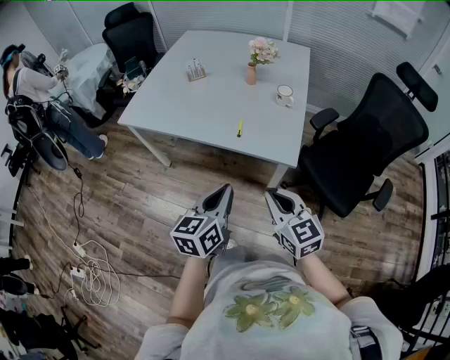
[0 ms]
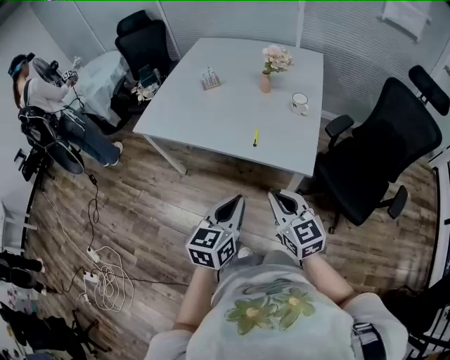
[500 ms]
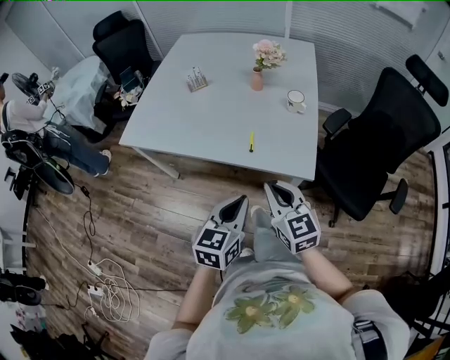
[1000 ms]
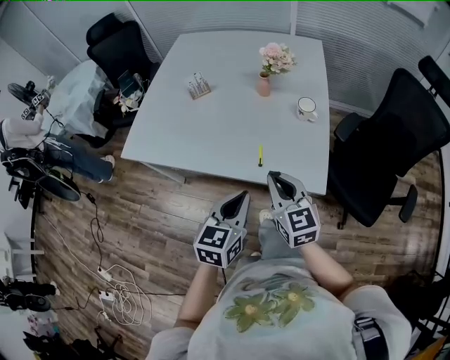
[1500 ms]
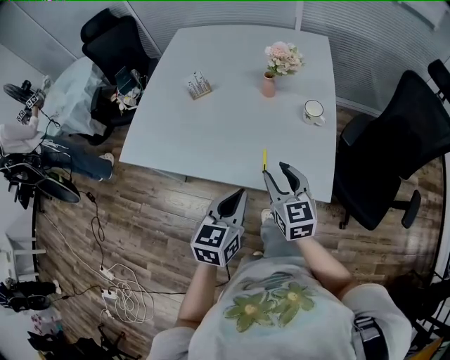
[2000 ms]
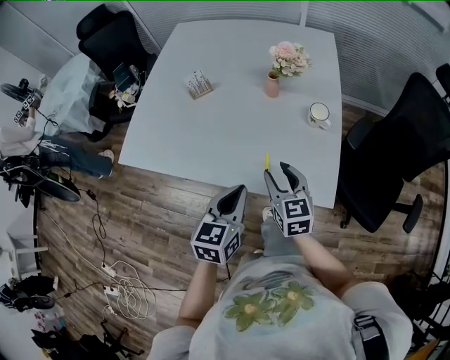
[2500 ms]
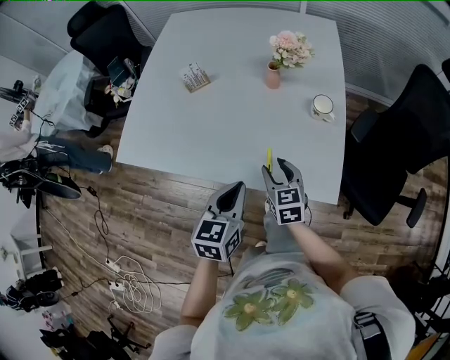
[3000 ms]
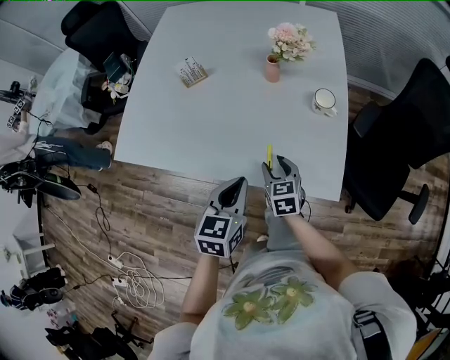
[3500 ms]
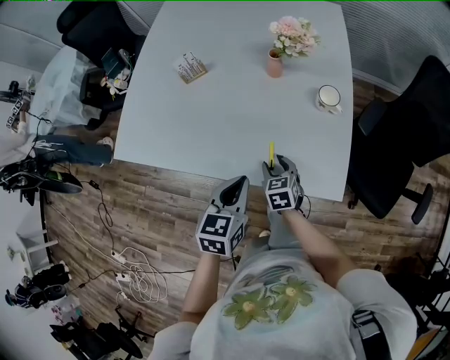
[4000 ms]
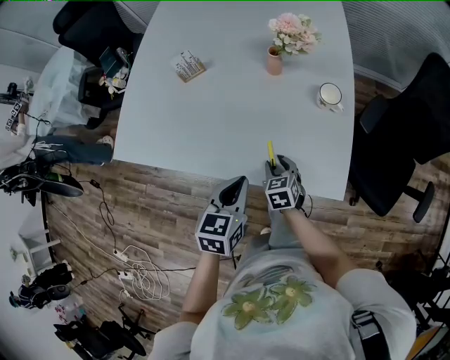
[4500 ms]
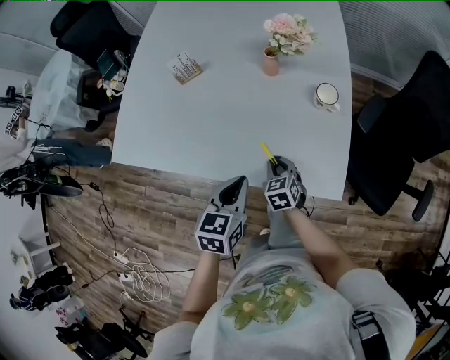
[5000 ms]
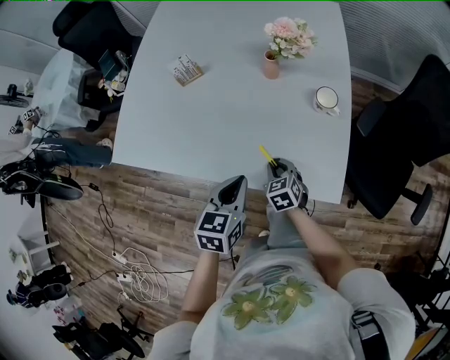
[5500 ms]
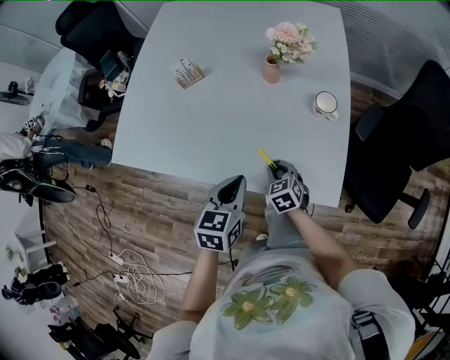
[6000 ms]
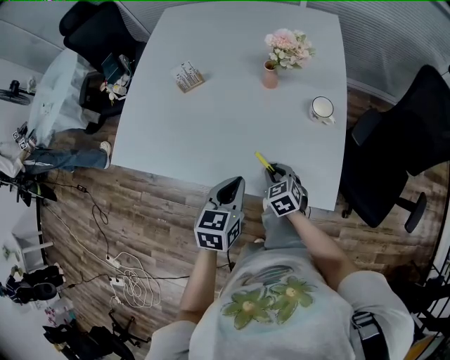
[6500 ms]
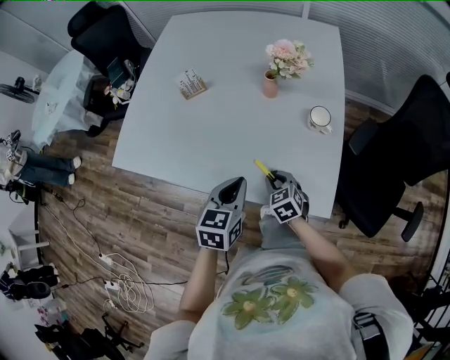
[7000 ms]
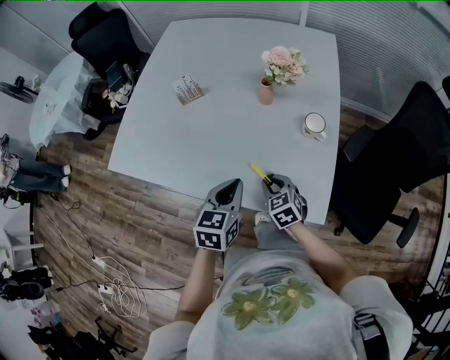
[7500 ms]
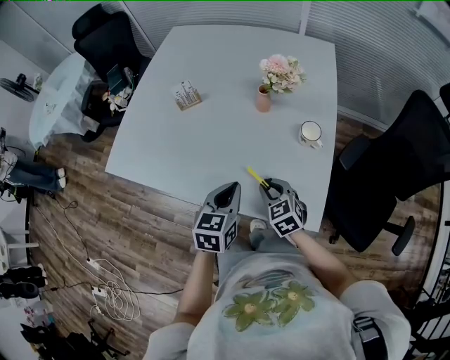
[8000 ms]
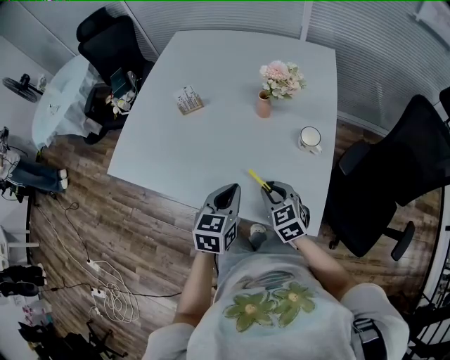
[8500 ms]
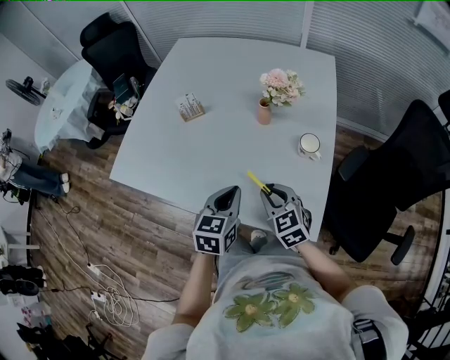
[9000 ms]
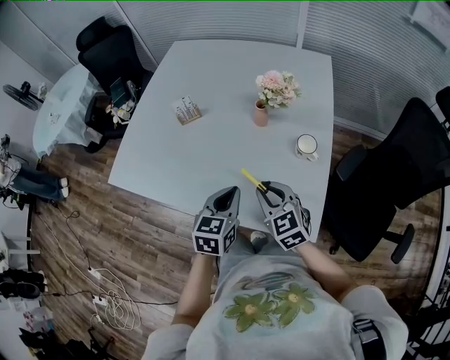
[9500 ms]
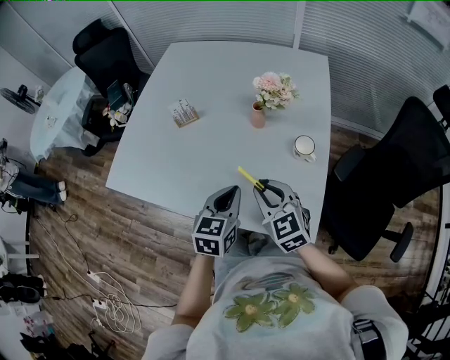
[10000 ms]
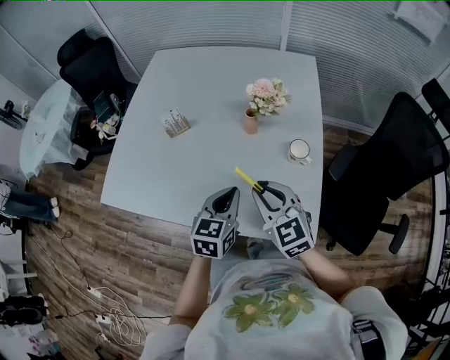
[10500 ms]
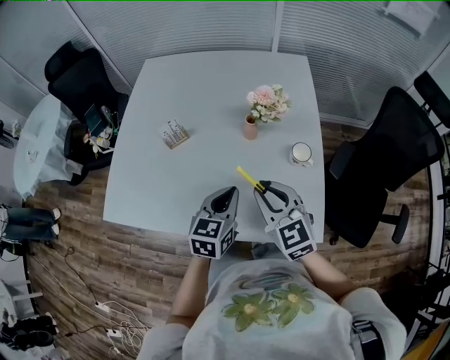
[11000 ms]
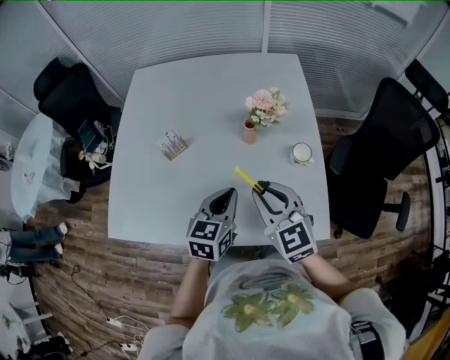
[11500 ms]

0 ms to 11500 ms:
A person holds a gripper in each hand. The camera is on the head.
0 ms to 2000 ms: The two grippers go some 25 cm forward. The right gripper opens.
2000 ms to 4000 ms: The left gripper heads forward and downward, covering about 10 cm; the right gripper moves downward, roughly 20 cm, and rotates some 30 degrees.
4000 ms to 6000 ms: The right gripper closes its fingers.
6000 ms to 7500 ms: The right gripper heads upward, covering about 5 cm.
7500 ms to 9500 ms: The right gripper goes some 15 cm upward.
9500 ms to 11500 ms: The right gripper travels upward, forward and to the left by approximately 15 cm, while the left gripper shifts some 10 cm forward.

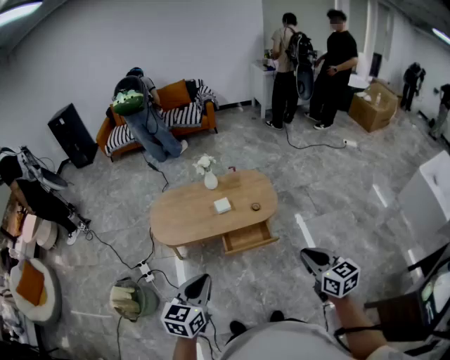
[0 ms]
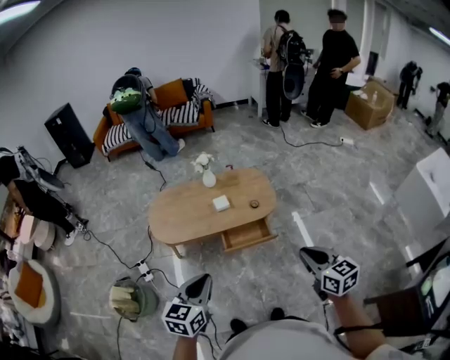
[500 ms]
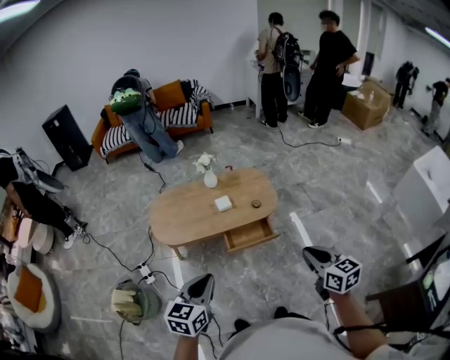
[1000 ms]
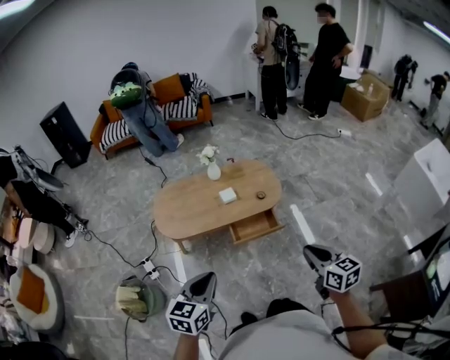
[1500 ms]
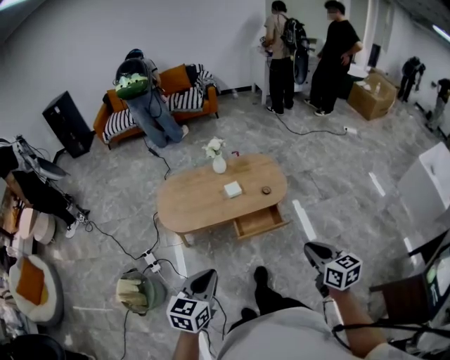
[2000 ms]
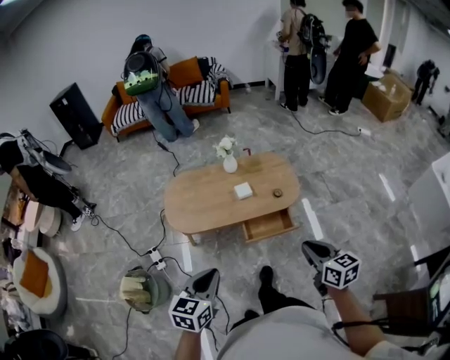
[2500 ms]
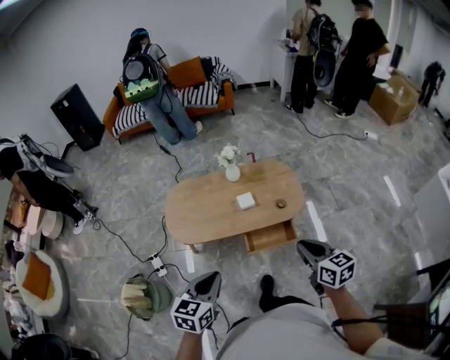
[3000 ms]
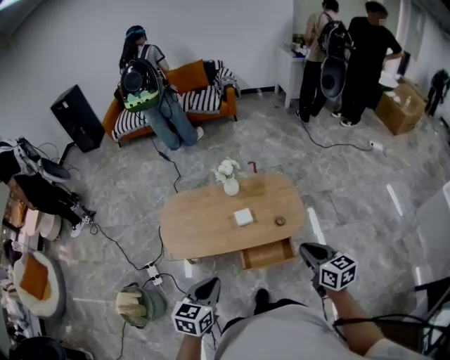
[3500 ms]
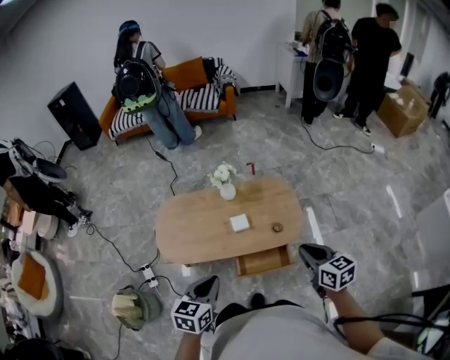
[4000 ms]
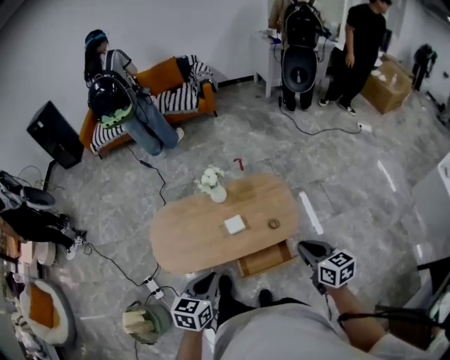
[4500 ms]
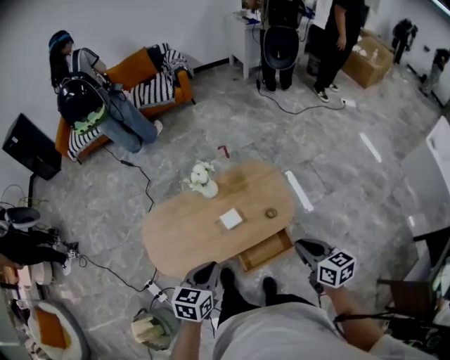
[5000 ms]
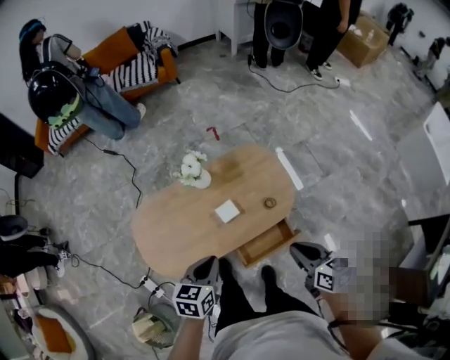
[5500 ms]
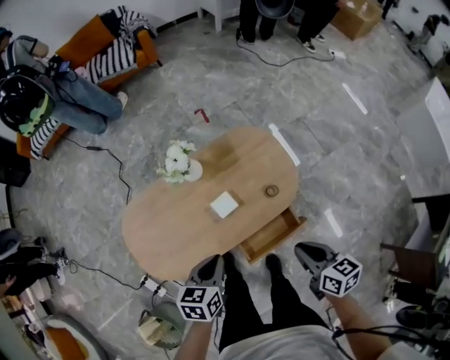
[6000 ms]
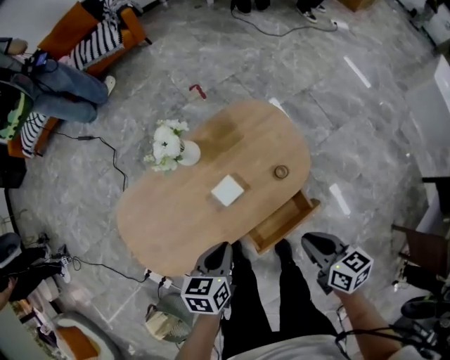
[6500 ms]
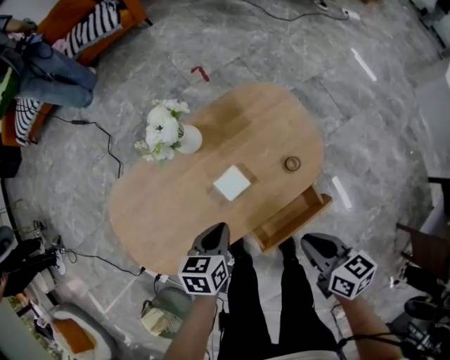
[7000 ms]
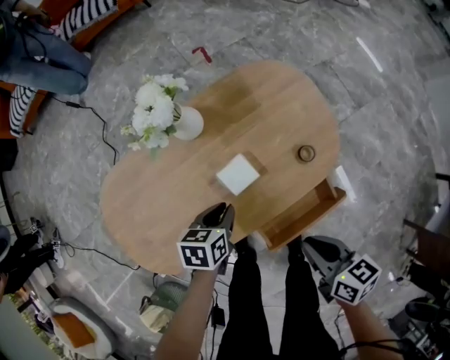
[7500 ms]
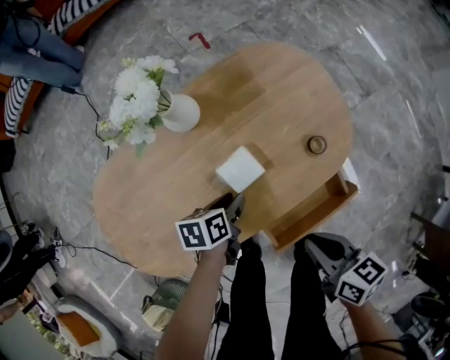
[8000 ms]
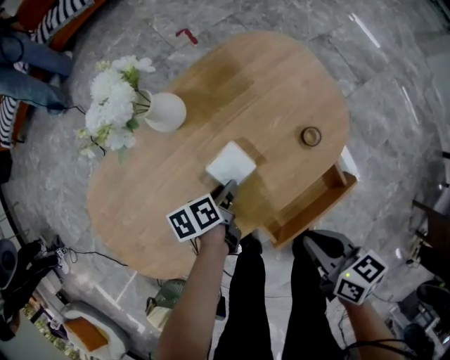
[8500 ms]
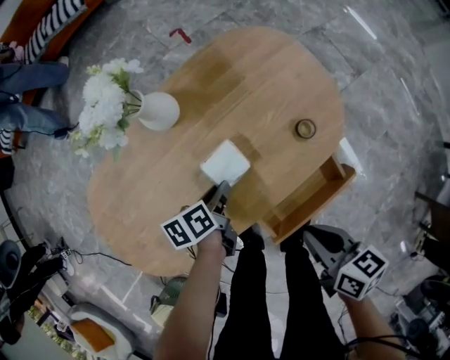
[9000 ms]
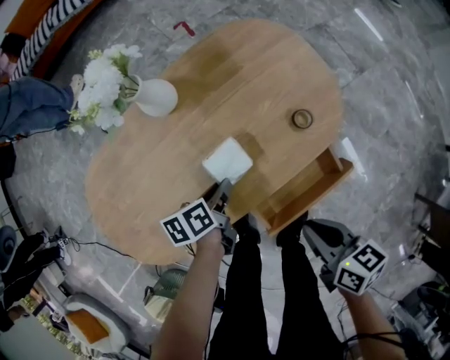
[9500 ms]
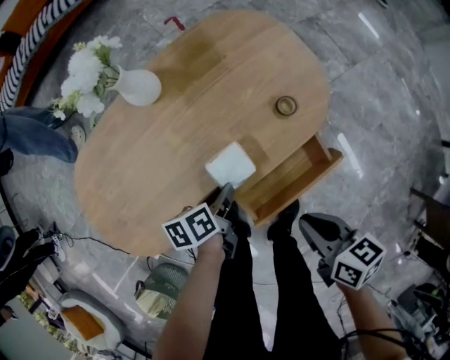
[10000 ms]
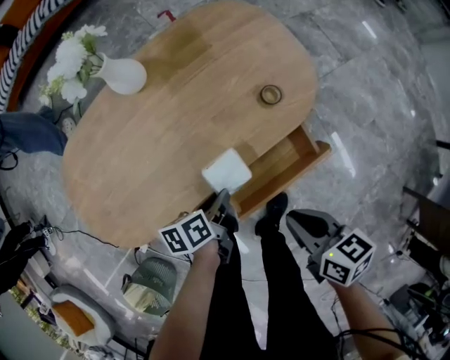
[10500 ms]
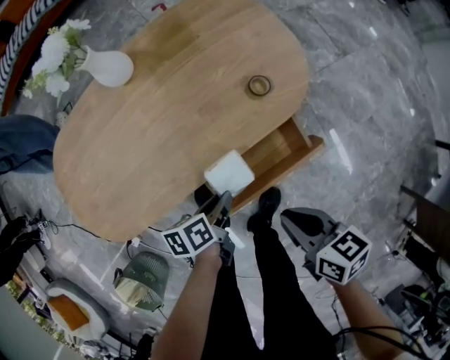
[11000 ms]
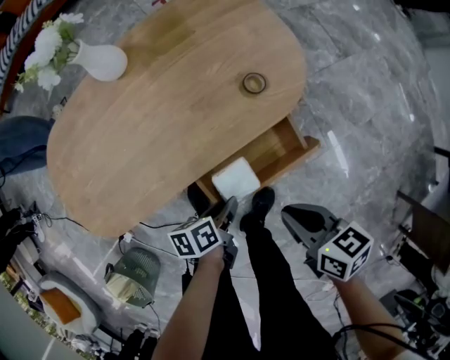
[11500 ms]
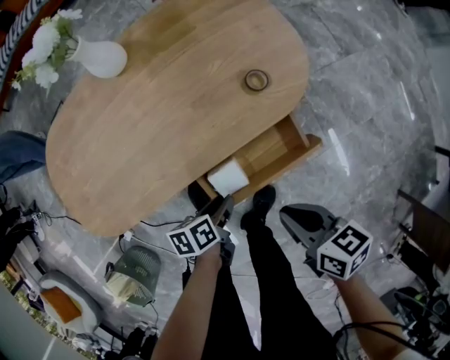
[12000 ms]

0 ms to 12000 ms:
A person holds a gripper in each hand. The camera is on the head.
0 ms to 2000 ms: The two grippers go approximately 10 cm to the left.
2000 ms to 4000 ms: Both grippers move forward, some 30 cm.
4000 ms to 6000 ms: The left gripper heads forward and downward, covering some 25 cm, and rotates some 20 degrees. The right gripper goes about 15 cm downward and to the left, and changes its angle by about 30 degrees.
6000 ms to 8000 ms: The left gripper heads downward, covering about 35 cm, swivels approximately 30 degrees, and opens, while the right gripper moves downward, roughly 20 cm.
8000 ms to 10000 ms: The left gripper moves backward and to the right, about 10 cm; the right gripper is displaced to the right and backward by about 10 cm.
10000 ms to 12000 ms: The right gripper shifts by about 5 cm; the left gripper moves backward, to the right and downward, roughly 15 cm.

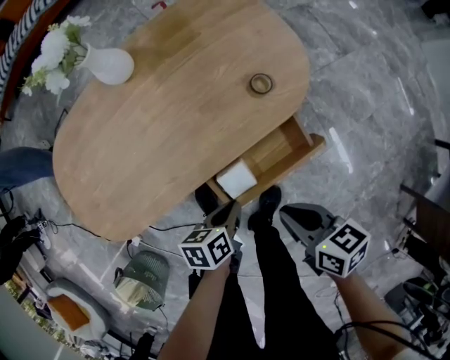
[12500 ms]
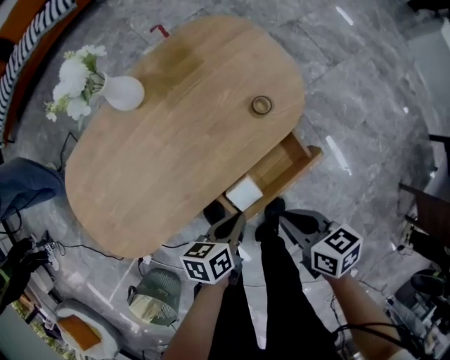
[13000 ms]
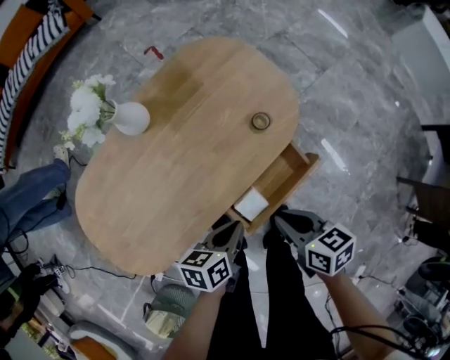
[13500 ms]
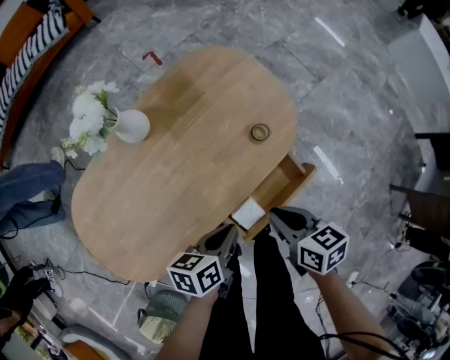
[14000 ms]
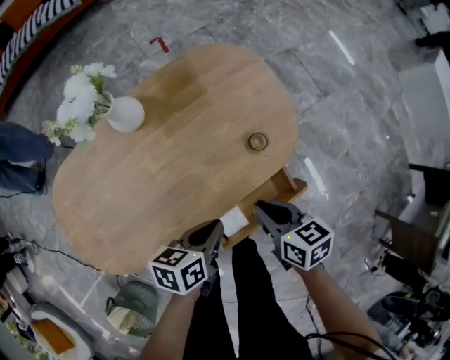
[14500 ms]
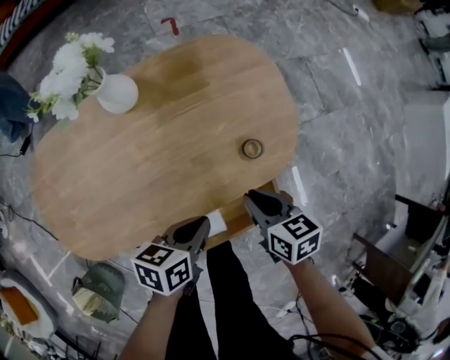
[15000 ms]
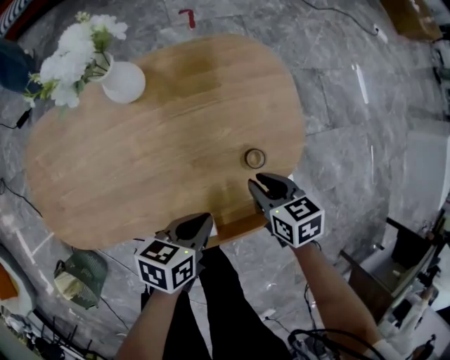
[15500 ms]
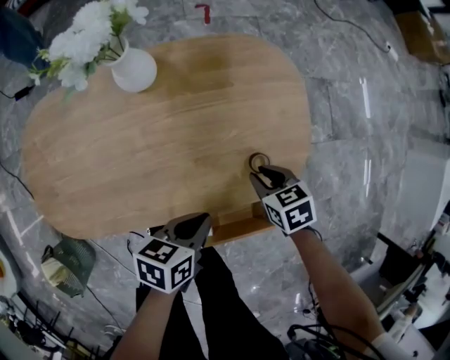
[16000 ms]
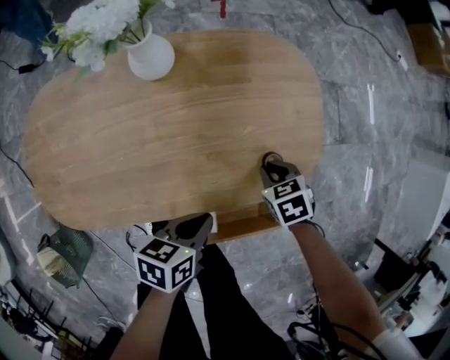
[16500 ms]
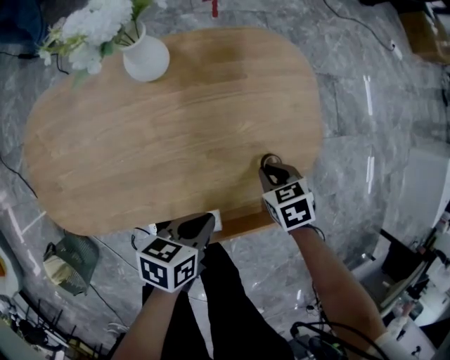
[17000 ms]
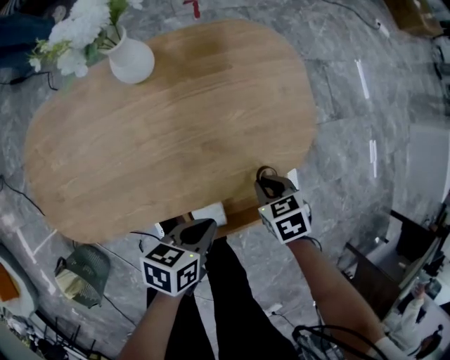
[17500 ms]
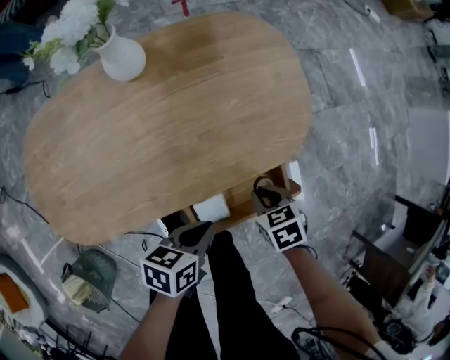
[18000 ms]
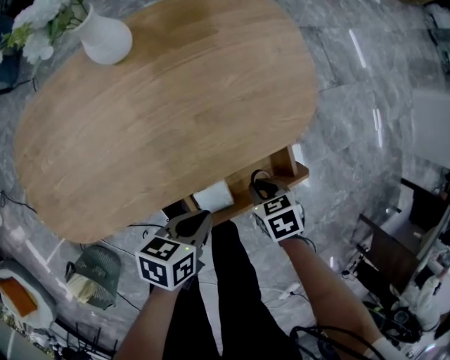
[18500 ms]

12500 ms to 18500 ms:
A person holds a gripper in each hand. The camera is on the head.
12500 ms to 14500 ms: The right gripper travels forward by some 15 cm. Meanwhile the left gripper heads forward and upward, covering some 15 cm.
14500 ms to 16500 ms: The right gripper travels downward and forward by some 20 cm, and rotates some 50 degrees. The left gripper moves about 5 cm.
16500 ms to 18500 ms: The left gripper goes some 10 cm backward, while the right gripper shifts approximately 20 cm backward, and turns by about 20 degrees.
